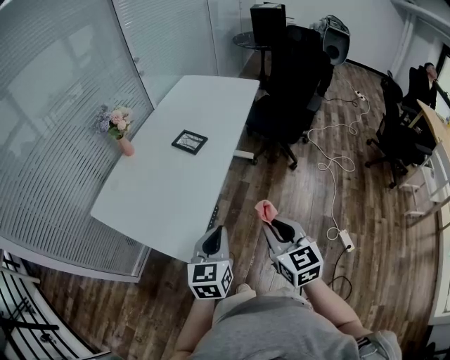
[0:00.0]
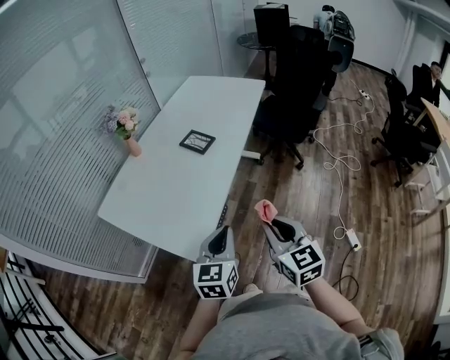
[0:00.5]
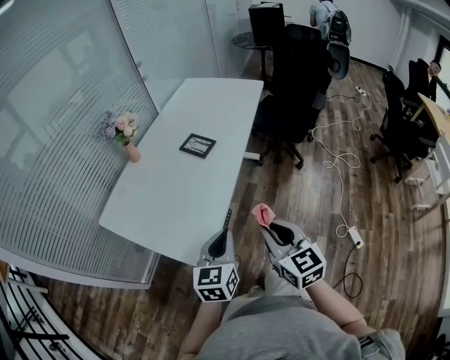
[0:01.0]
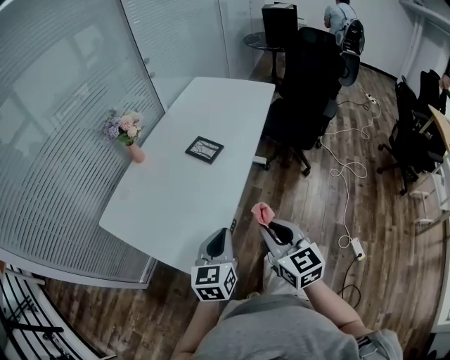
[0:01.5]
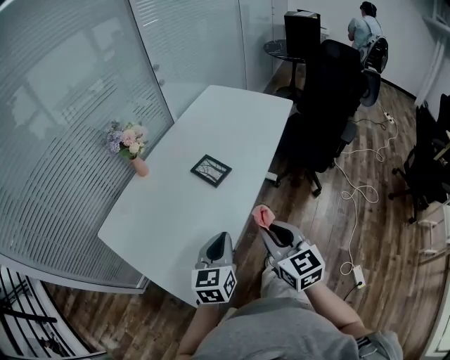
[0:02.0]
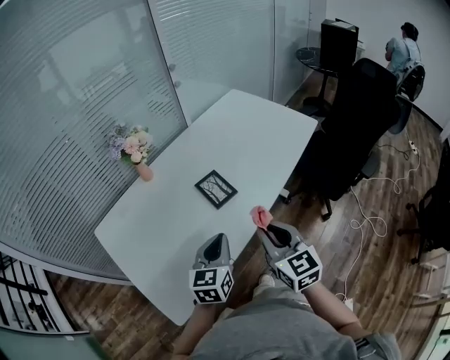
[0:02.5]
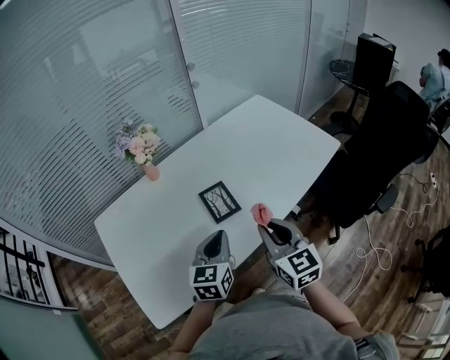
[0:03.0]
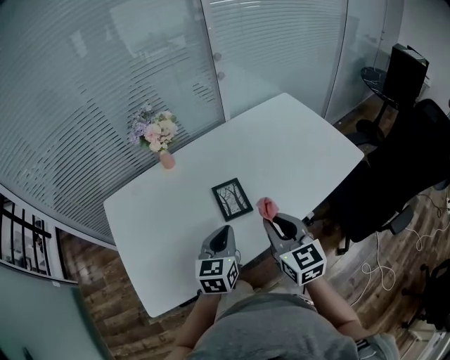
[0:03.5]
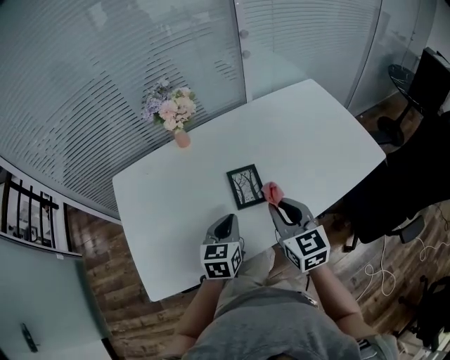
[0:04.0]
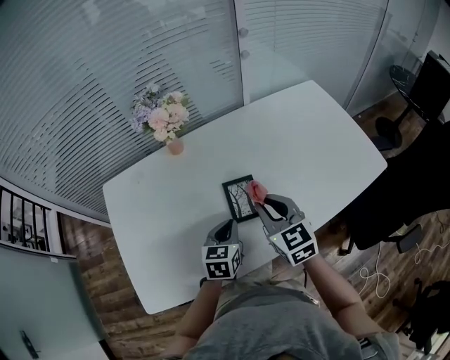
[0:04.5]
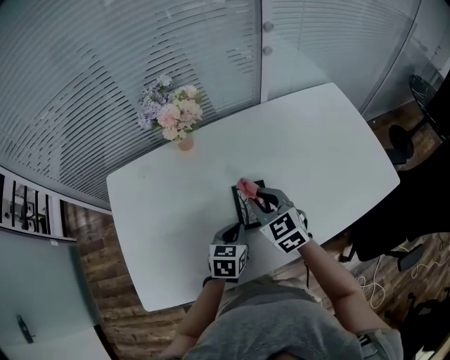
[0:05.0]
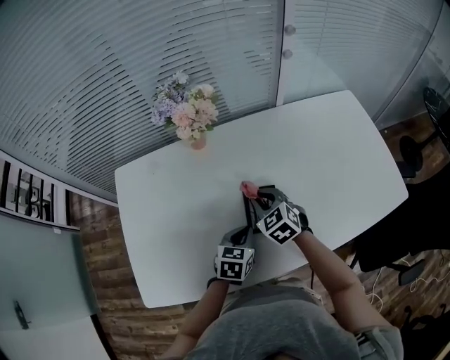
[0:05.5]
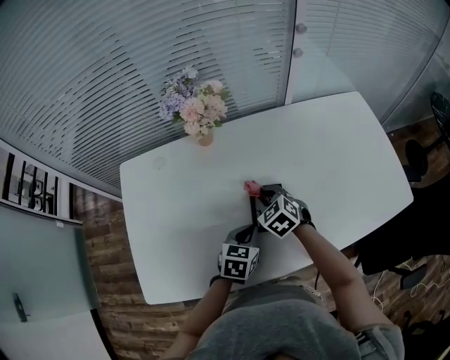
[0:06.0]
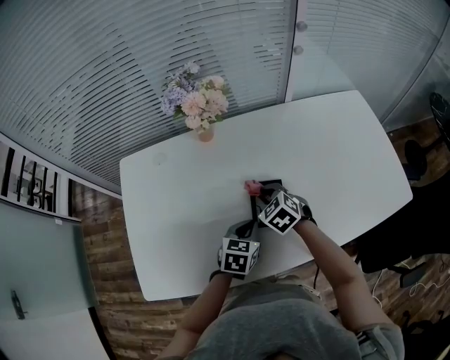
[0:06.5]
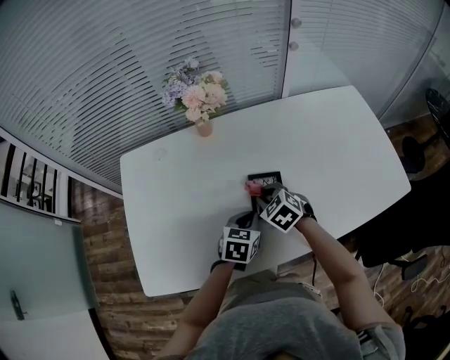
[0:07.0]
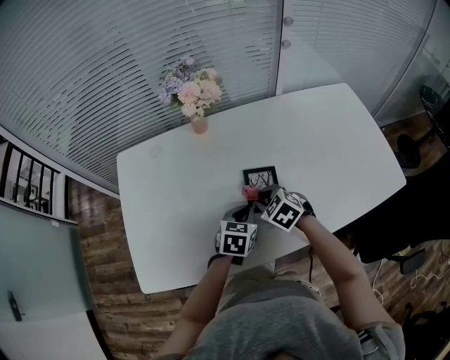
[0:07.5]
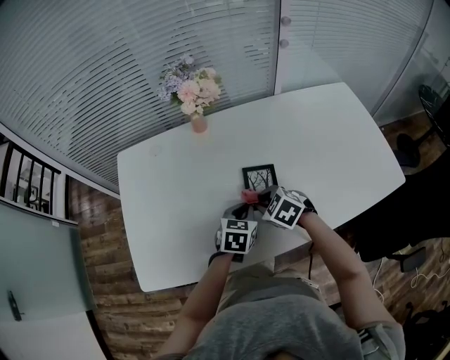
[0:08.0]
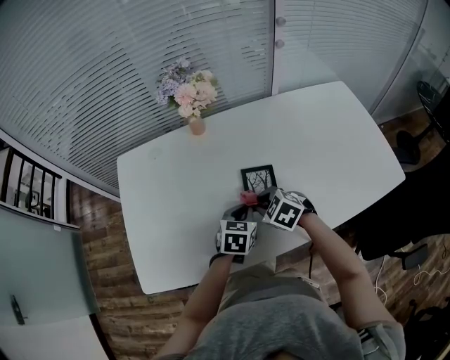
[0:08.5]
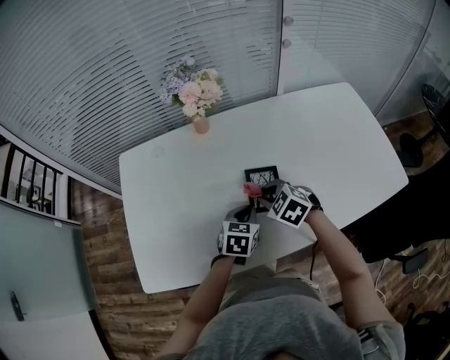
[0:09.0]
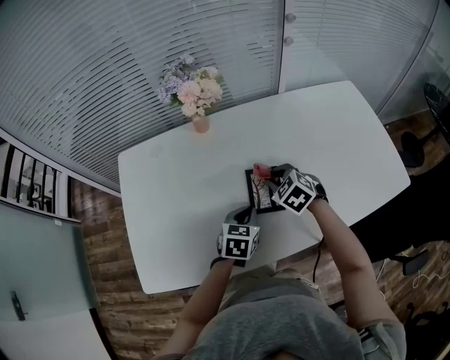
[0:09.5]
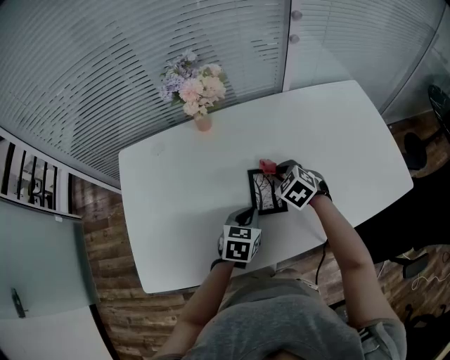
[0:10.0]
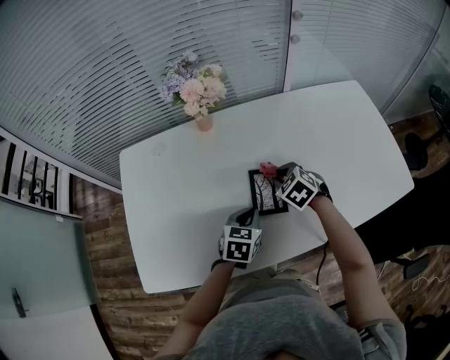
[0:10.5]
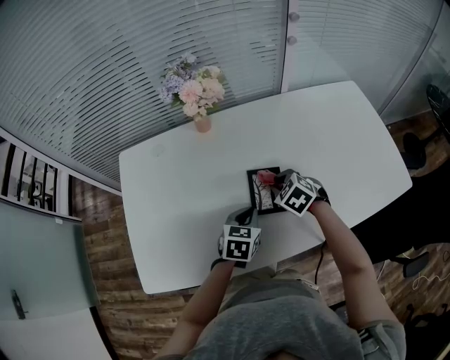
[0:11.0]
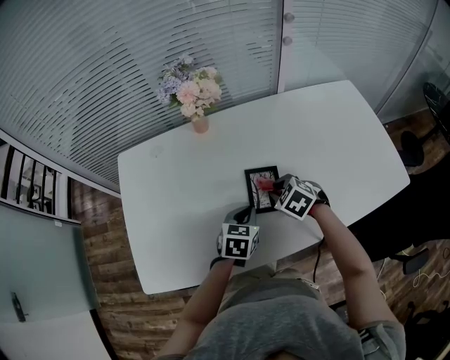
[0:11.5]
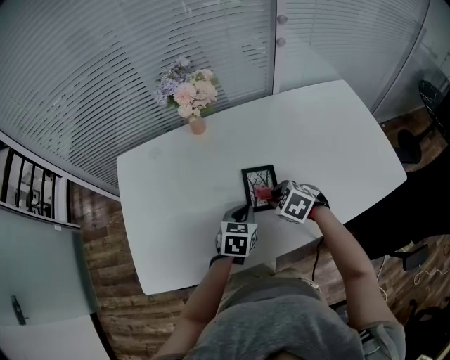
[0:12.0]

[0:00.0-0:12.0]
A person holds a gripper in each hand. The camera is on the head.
0:00.0 to 0:02.0: The grippers both shift forward by roughly 20 cm.
0:02.0 to 0:04.0: The left gripper changes place by roughly 20 cm, and changes its angle by about 40 degrees, while the right gripper ends up some 30 cm from where it was, and swivels some 30 degrees.
0:04.0 to 0:06.0: The left gripper goes some 10 cm downward and forward. The right gripper travels downward, forward and to the left by roughly 25 cm, and points its fingers approximately 30 degrees further downward.
0:06.0 to 0:08.0: The right gripper heads backward, covering about 10 cm.
0:08.0 to 0:10.0: The right gripper goes about 10 cm forward and to the right.
0:10.0 to 0:12.0: The right gripper is displaced backward by some 10 cm.

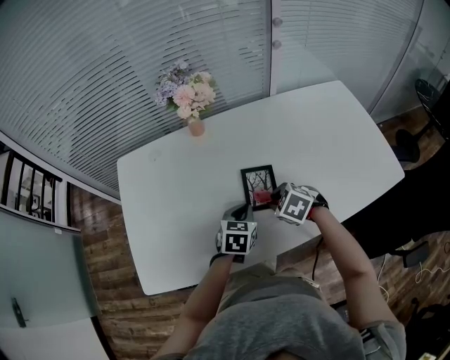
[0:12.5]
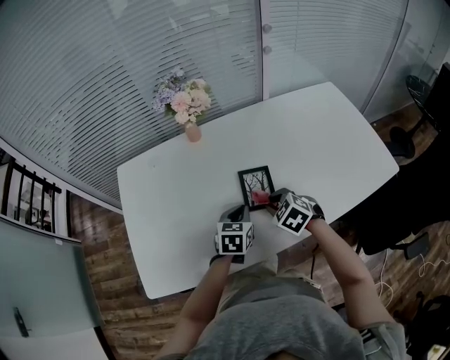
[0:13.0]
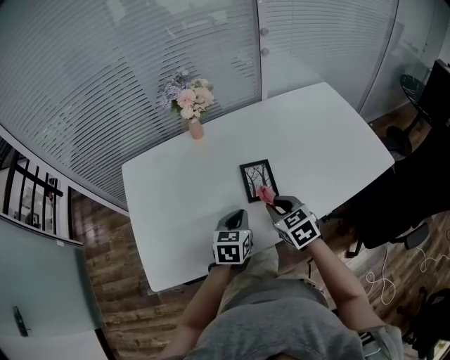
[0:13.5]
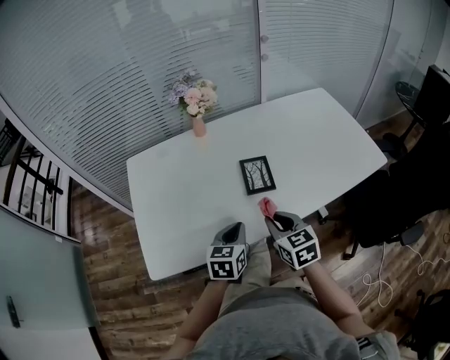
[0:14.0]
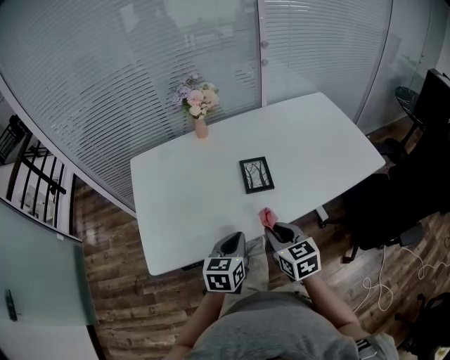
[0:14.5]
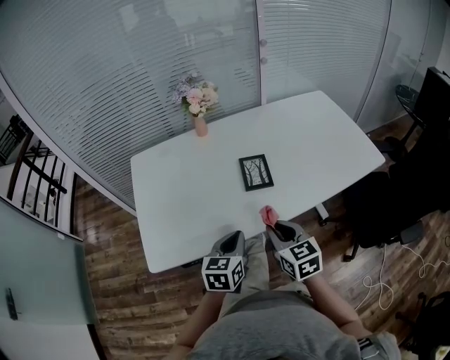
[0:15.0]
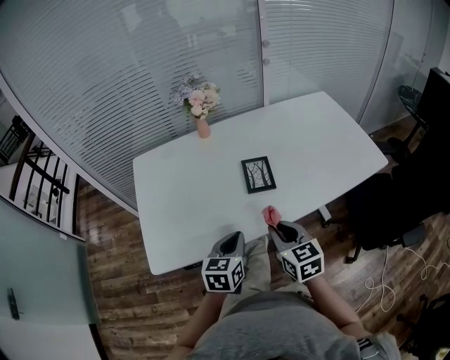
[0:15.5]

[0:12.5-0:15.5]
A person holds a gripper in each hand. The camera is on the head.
0:12.5 to 0:14.0: The right gripper heads backward and upward, covering some 15 cm, and points its fingers approximately 30 degrees further upward. Meanwhile the left gripper moves backward, upward and to the left, some 15 cm.
0:14.0 to 0:15.5: The right gripper moves some 5 cm, while the left gripper changes place by approximately 5 cm.

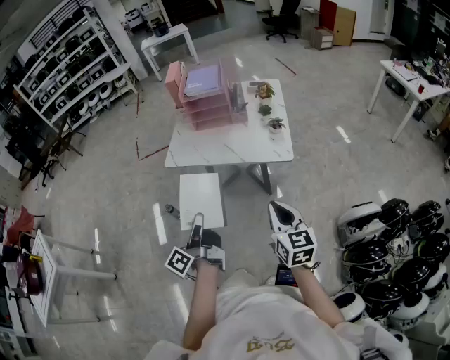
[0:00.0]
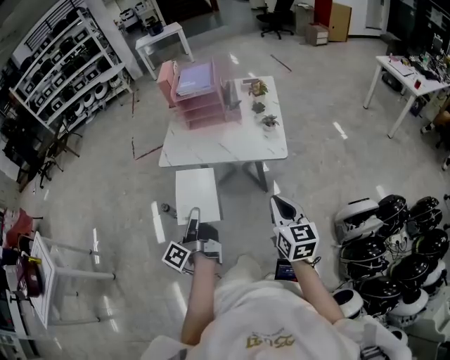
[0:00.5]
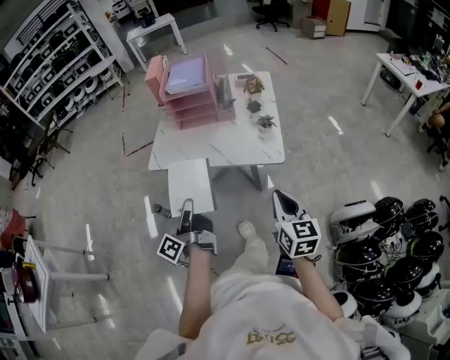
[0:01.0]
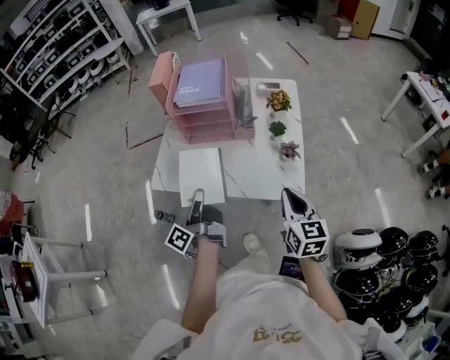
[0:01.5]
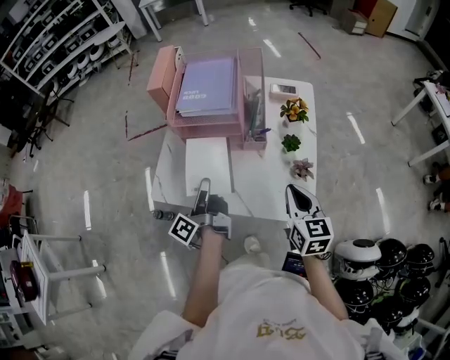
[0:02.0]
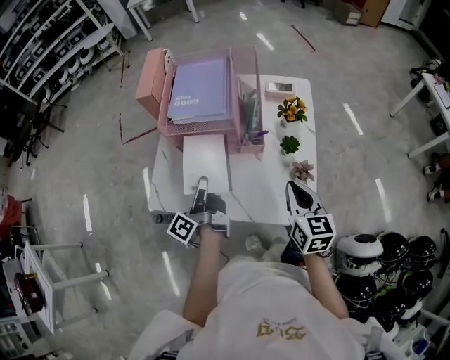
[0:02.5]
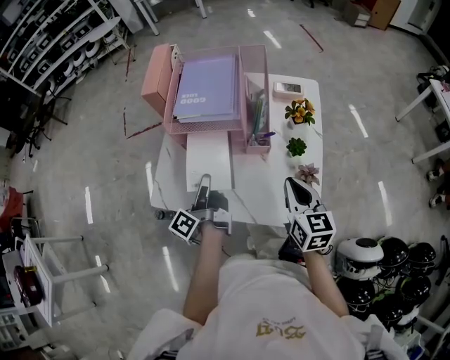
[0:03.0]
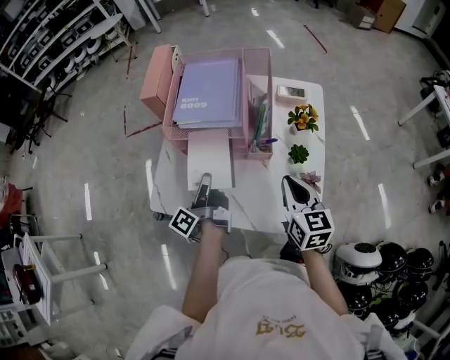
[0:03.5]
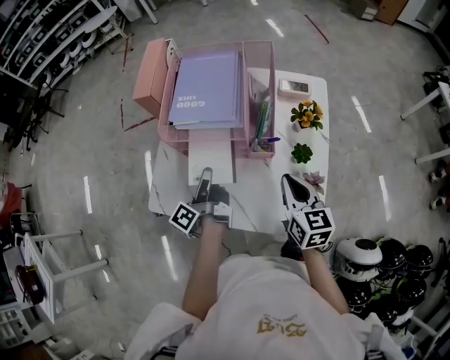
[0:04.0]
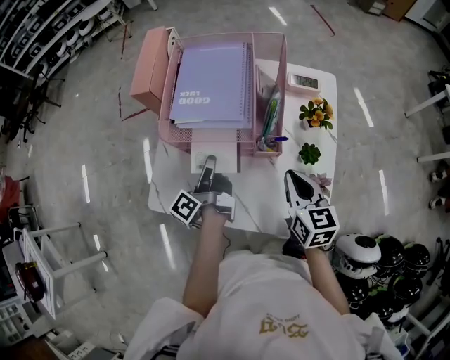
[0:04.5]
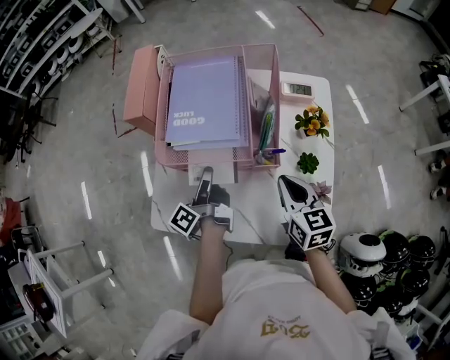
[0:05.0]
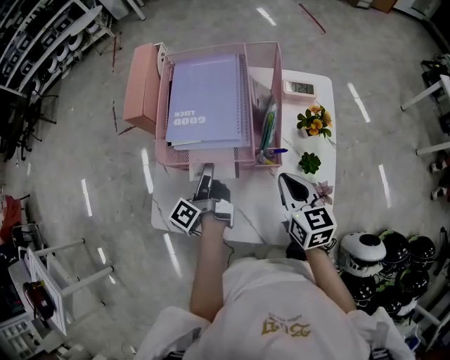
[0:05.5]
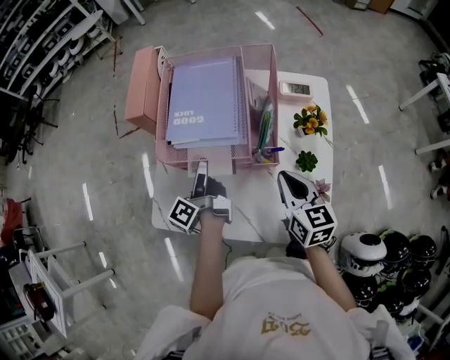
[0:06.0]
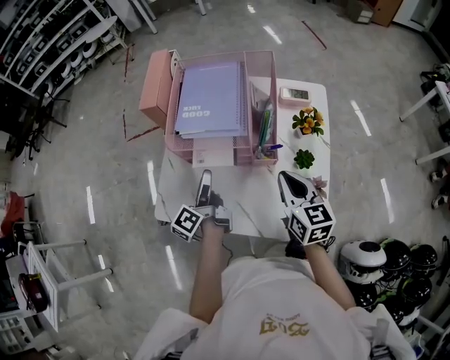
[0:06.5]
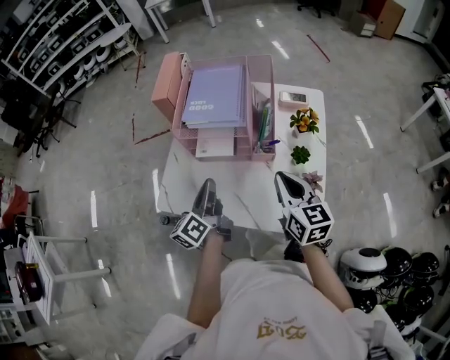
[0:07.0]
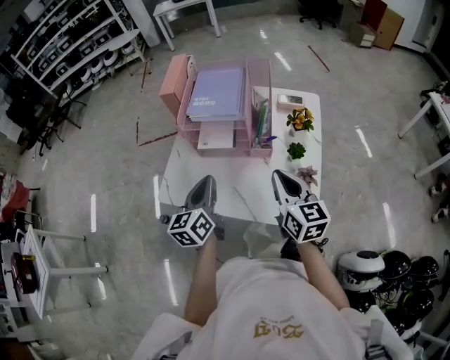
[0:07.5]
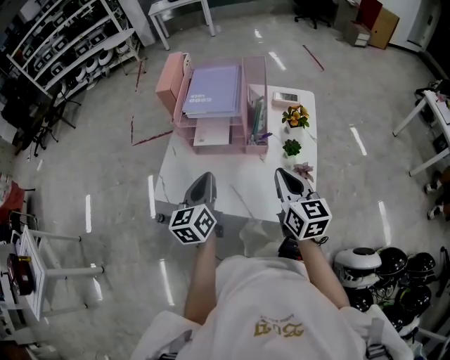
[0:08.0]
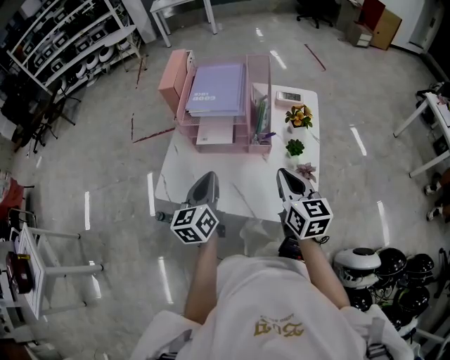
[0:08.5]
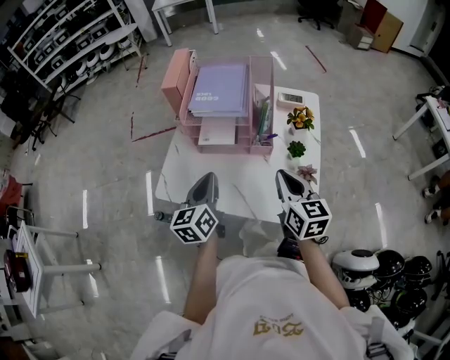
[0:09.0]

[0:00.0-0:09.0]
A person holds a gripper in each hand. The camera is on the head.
0:00.0 to 0:02.0: Both grippers travel together forward, approximately 40 cm.
0:02.0 to 0:04.5: The two grippers go some 15 cm forward.
0:04.5 to 0:07.0: The right gripper travels upward and backward by roughly 10 cm, while the left gripper travels backward and upward by approximately 10 cm, changes its angle by approximately 30 degrees, and opens, then closes once more.
0:07.0 to 0:09.0: The left gripper shifts by about 5 cm, and changes its angle by roughly 30 degrees.

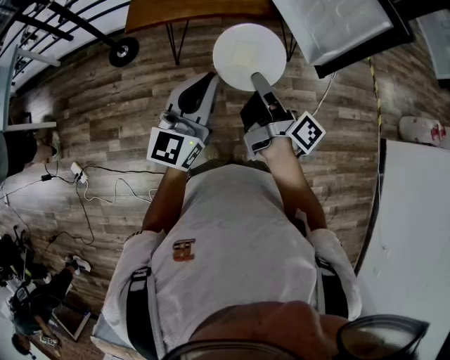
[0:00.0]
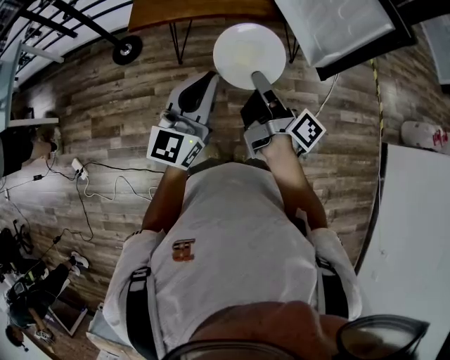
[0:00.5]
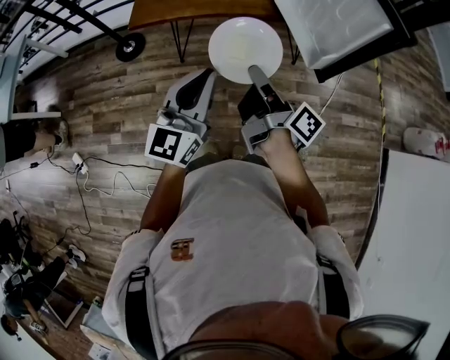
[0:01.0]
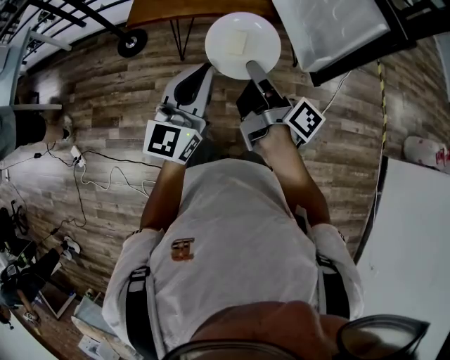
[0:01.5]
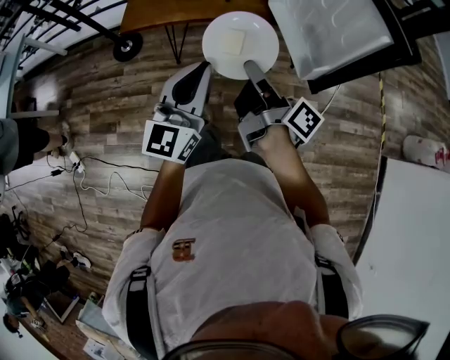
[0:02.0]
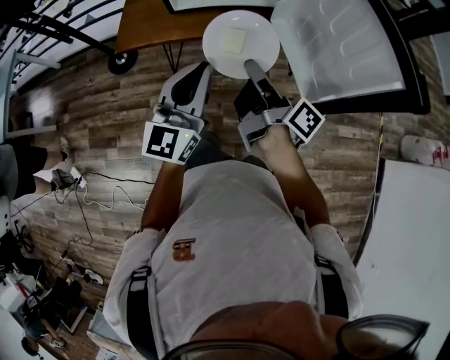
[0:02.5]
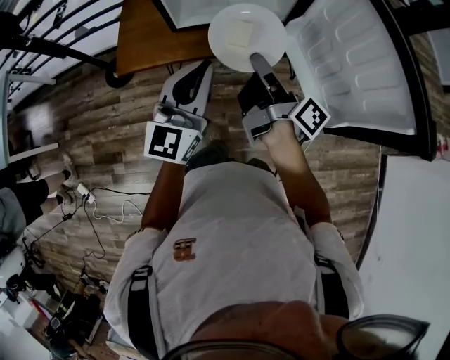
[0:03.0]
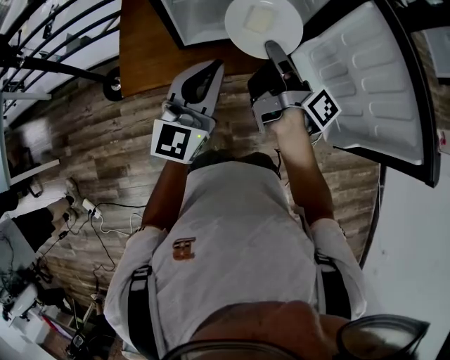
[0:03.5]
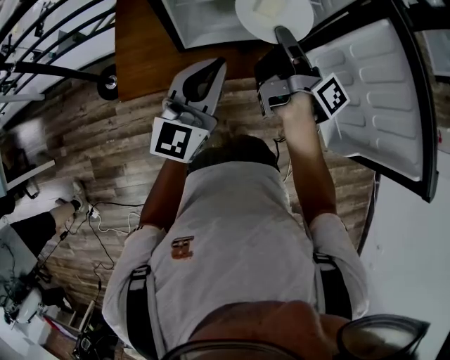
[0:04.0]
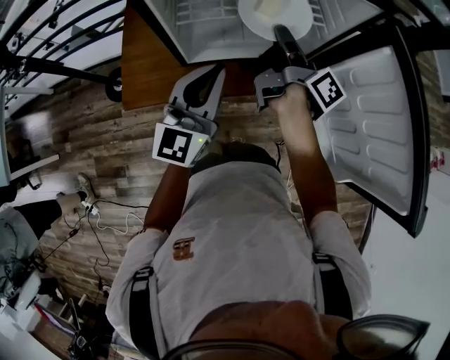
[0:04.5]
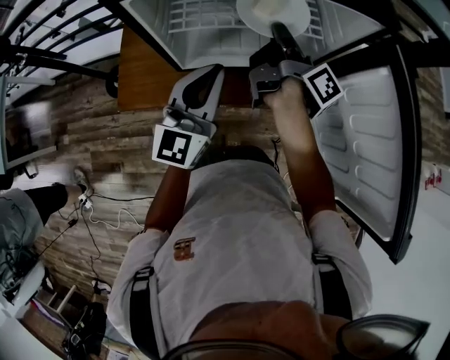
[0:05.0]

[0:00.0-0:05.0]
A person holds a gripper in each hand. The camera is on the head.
0:00.0 to 0:02.5: Both grippers travel together forward, some 20 cm.
0:02.5 to 0:05.0: Both grippers move forward, approximately 40 cm.
